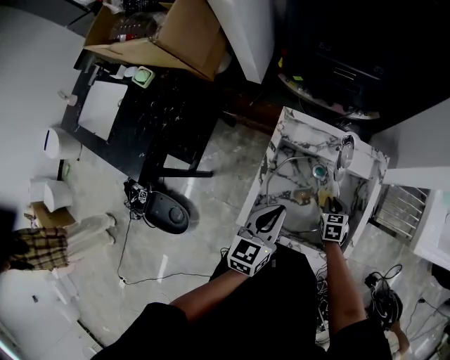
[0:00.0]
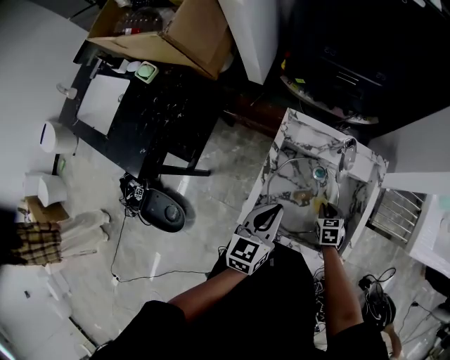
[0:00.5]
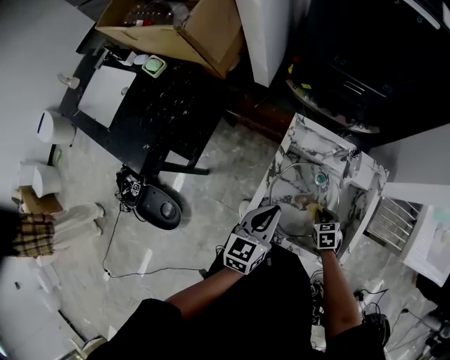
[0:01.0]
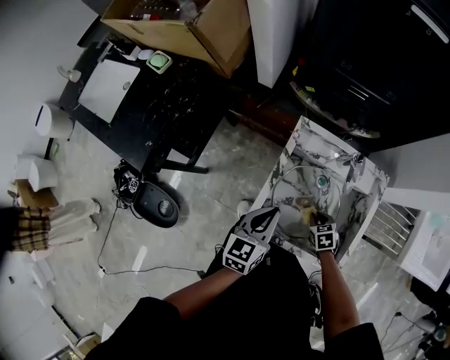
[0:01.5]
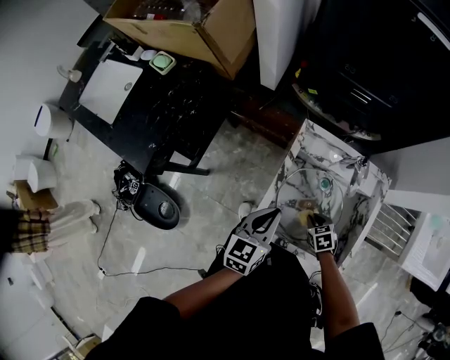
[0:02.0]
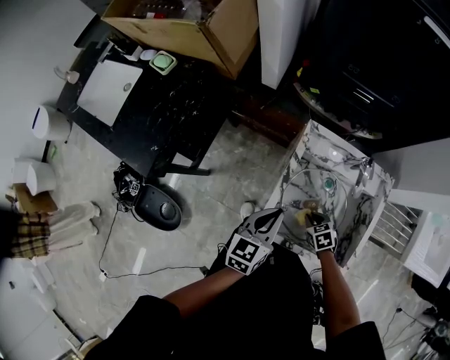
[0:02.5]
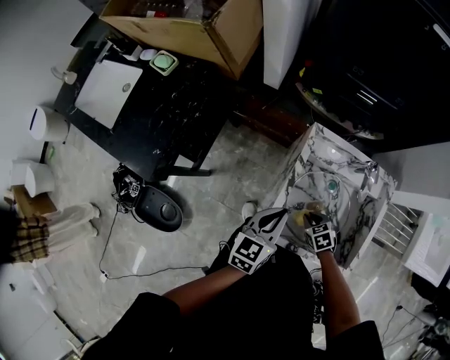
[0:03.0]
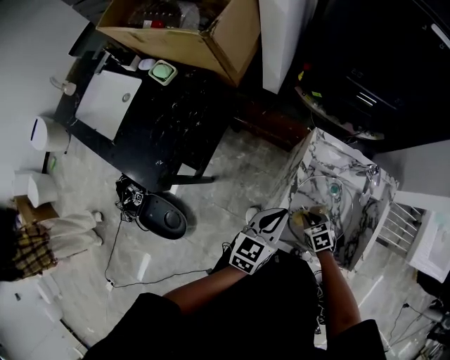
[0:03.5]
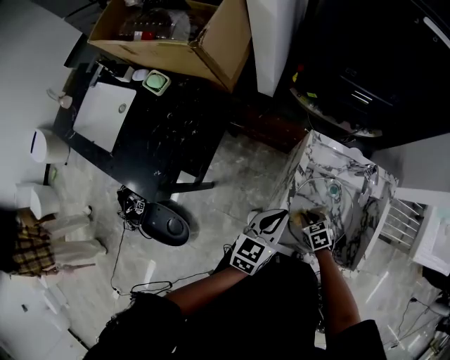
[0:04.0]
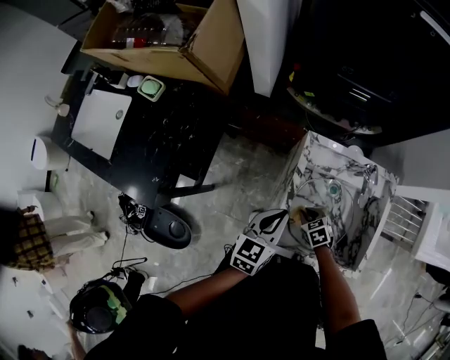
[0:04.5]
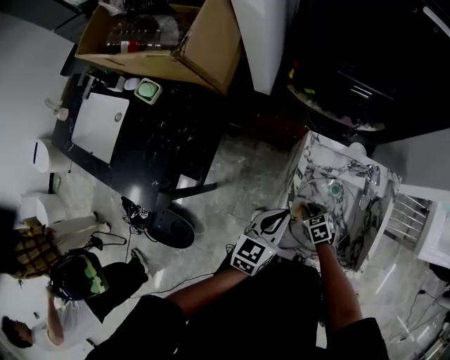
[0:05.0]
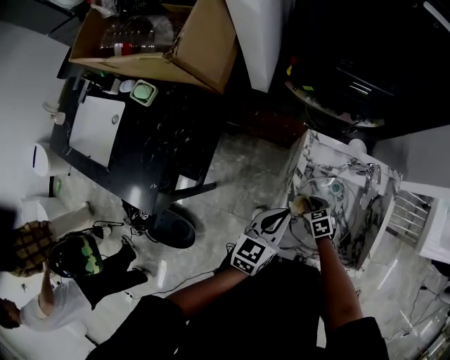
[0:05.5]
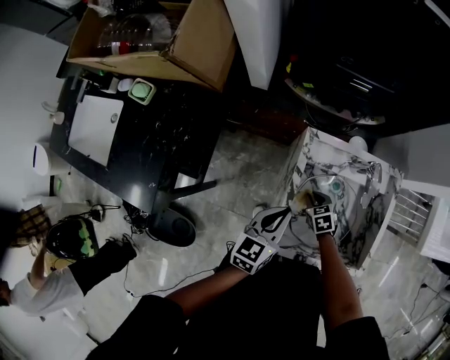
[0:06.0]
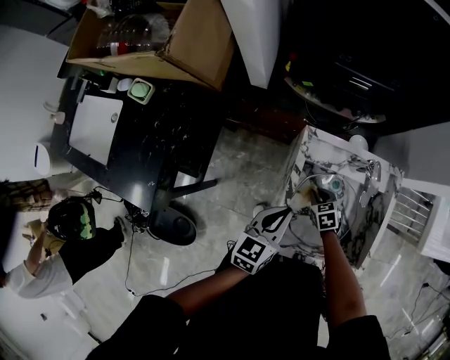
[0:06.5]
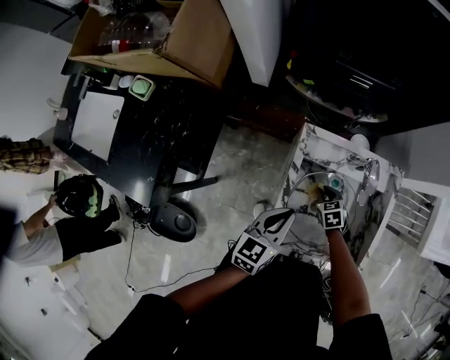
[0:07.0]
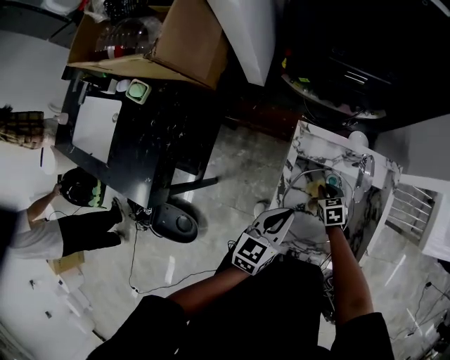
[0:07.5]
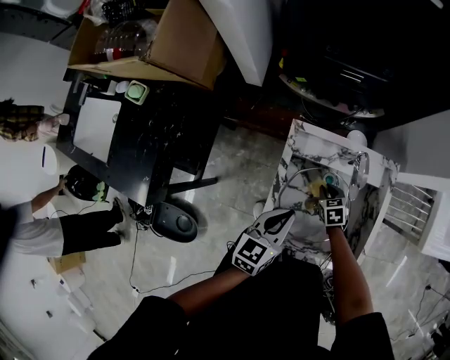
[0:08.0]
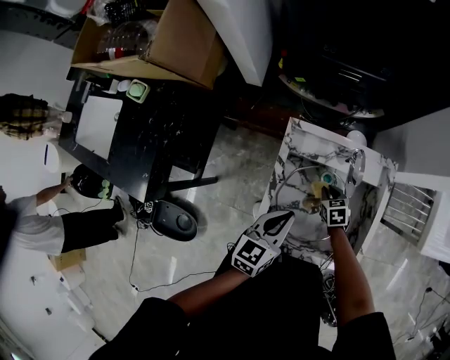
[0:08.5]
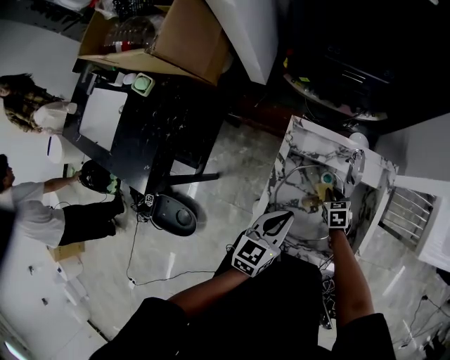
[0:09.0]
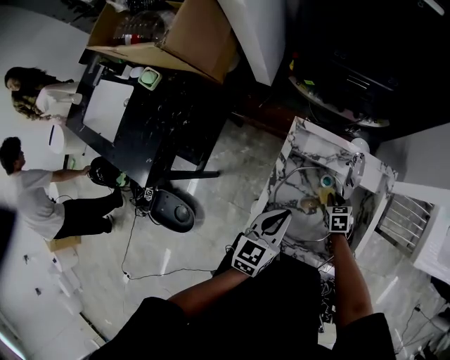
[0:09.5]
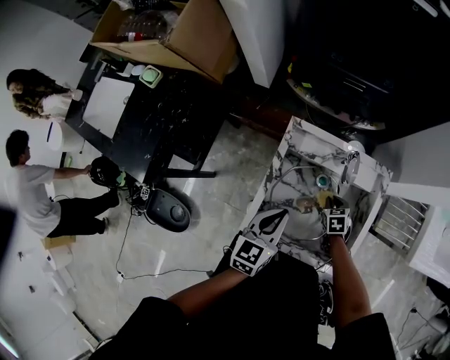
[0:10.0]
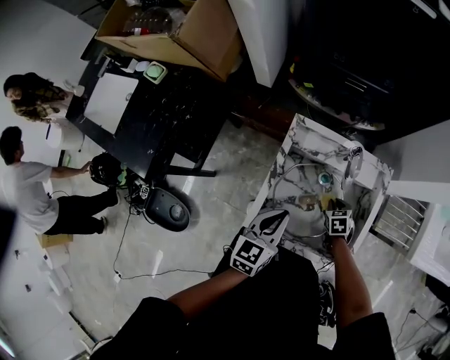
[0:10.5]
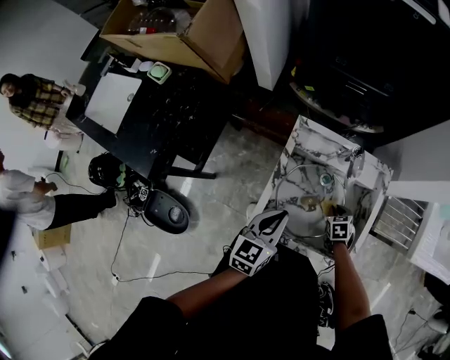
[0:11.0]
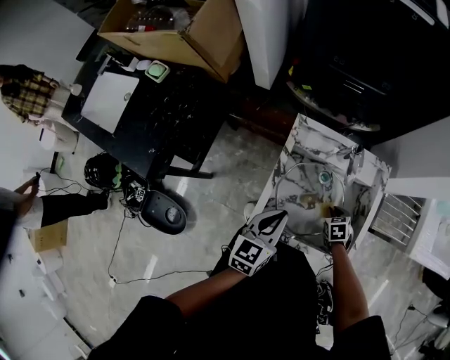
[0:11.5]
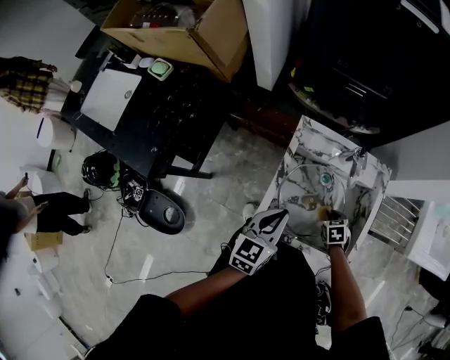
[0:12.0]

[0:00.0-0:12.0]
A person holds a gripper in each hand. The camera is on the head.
0.0 to 2.0 s: The grippers both shift to the left by about 10 cm. The right gripper turns by some 20 degrees.
2.0 to 4.0 s: The right gripper shifts approximately 10 cm to the left, while the left gripper shifts by about 5 cm.
4.0 to 6.0 s: The right gripper shifts roughly 10 cm forward.
6.0 to 8.0 s: Both grippers move to the right, some 10 cm.
8.0 to 10.0 s: The right gripper moves to the right, roughly 5 cm.
10.0 to 12.0 s: The right gripper shifts about 10 cm backward, while the left gripper shifts by some 5 cm.

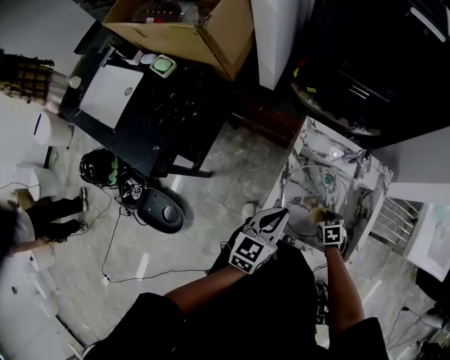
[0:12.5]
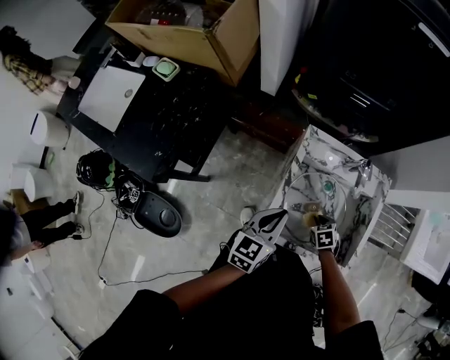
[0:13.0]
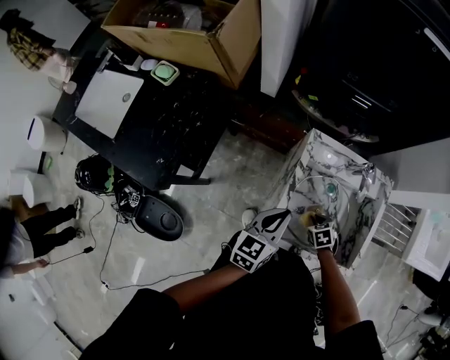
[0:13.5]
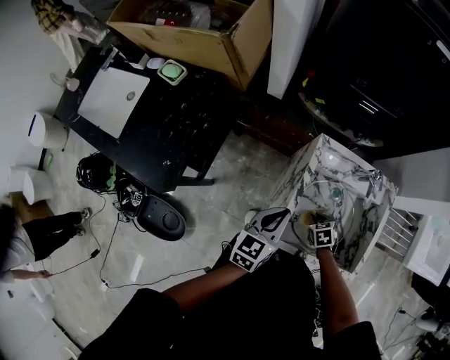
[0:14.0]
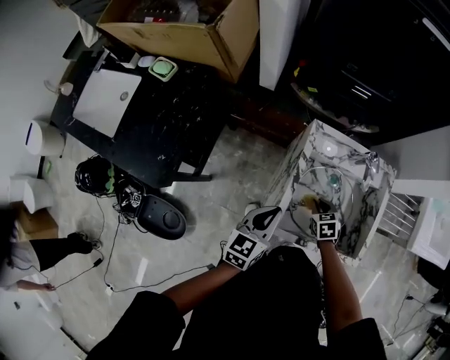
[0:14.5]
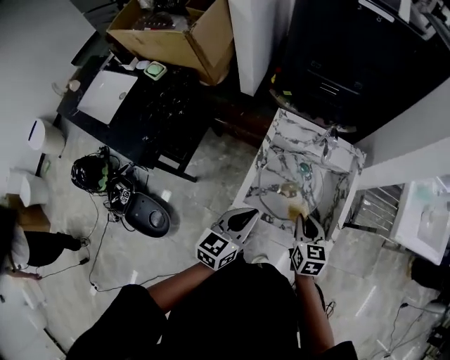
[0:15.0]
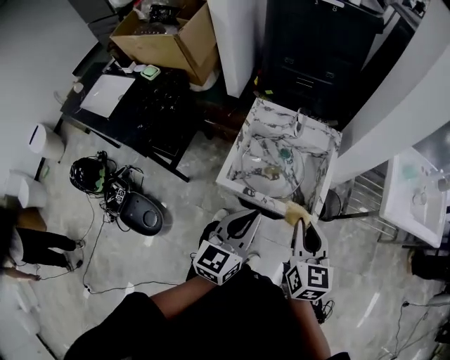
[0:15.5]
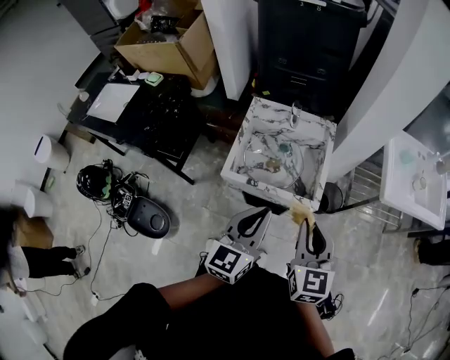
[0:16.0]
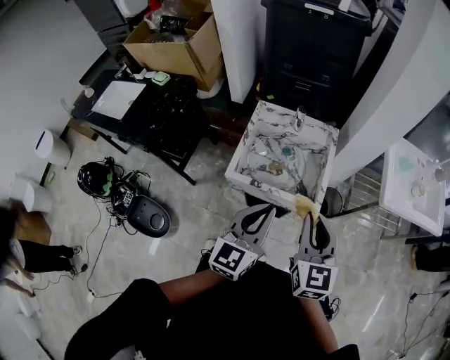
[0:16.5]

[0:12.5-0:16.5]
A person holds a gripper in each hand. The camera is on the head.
12.5 to 14.5 s: Both grippers travel together to the left, about 10 cm.
14.5 to 16.5 s: The left gripper is displaced to the right, backward and upward by approximately 40 cm, and turns by approximately 20 degrees. The right gripper travels upward, backward and to the right by approximately 50 cm, and points its fingers about 50 degrees further upward.

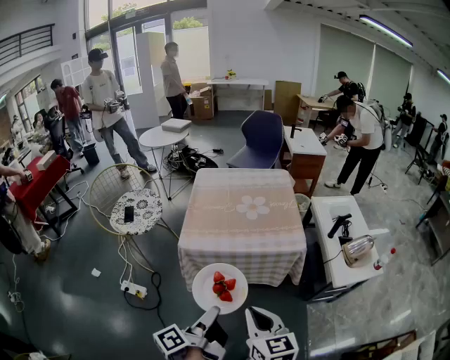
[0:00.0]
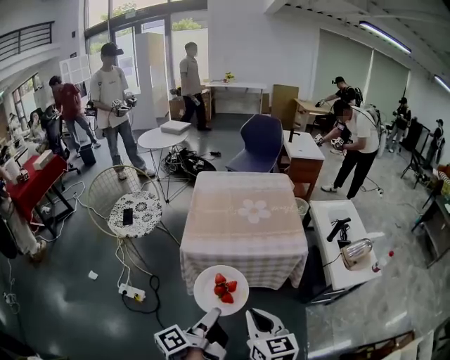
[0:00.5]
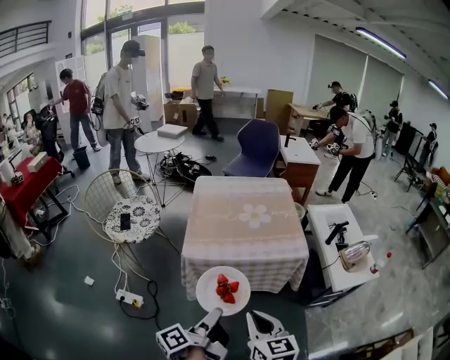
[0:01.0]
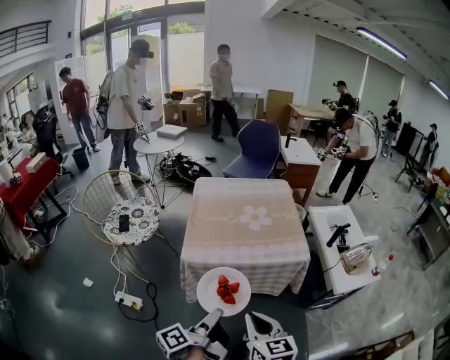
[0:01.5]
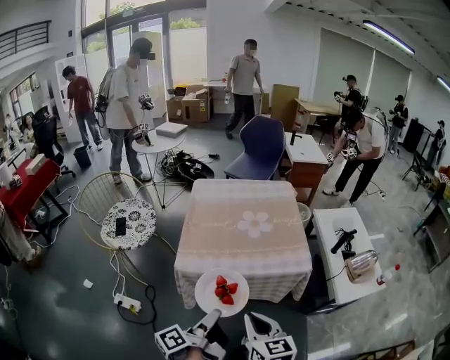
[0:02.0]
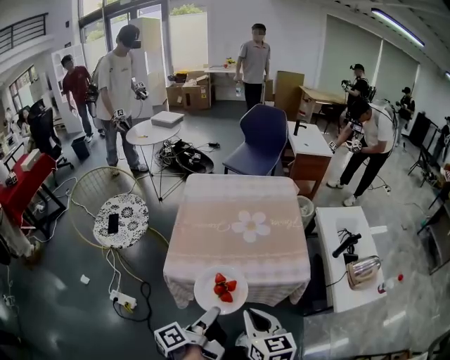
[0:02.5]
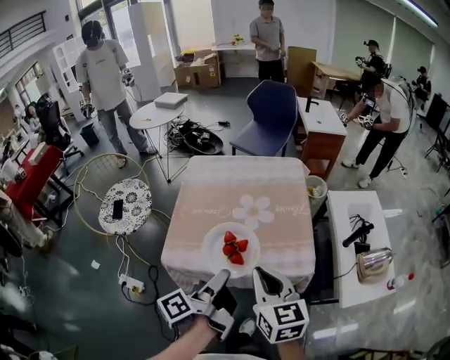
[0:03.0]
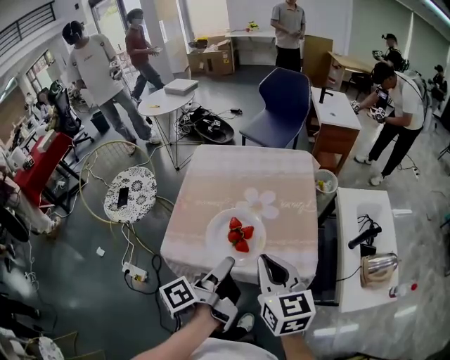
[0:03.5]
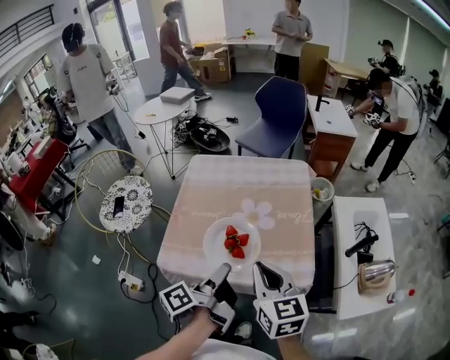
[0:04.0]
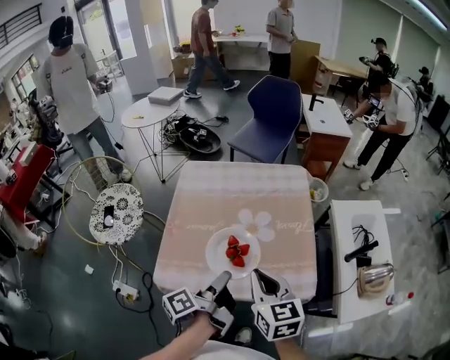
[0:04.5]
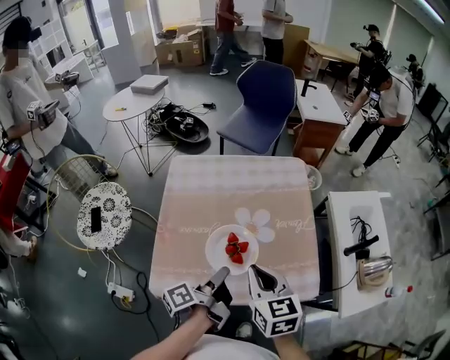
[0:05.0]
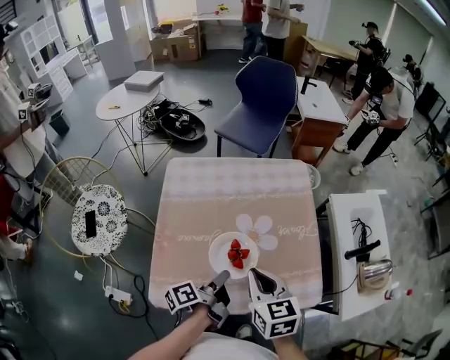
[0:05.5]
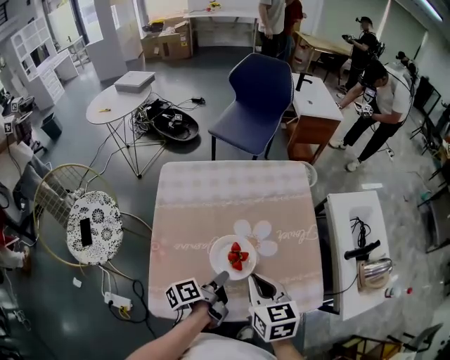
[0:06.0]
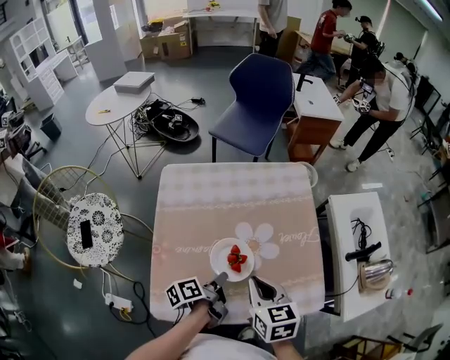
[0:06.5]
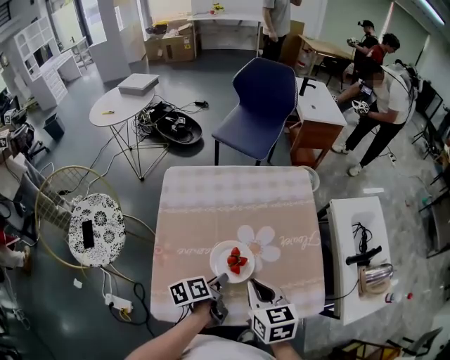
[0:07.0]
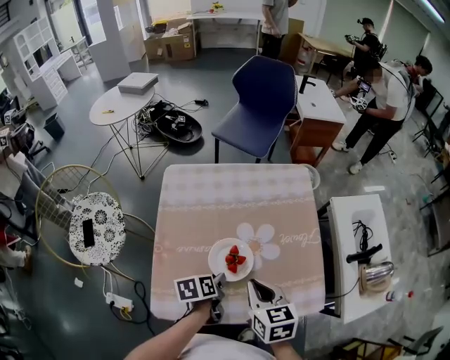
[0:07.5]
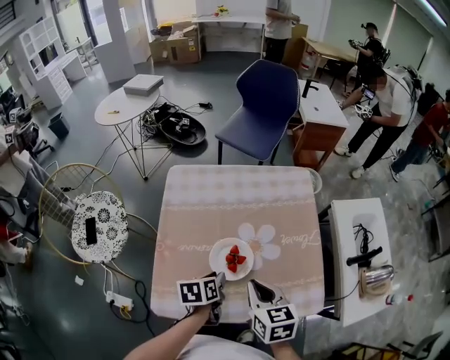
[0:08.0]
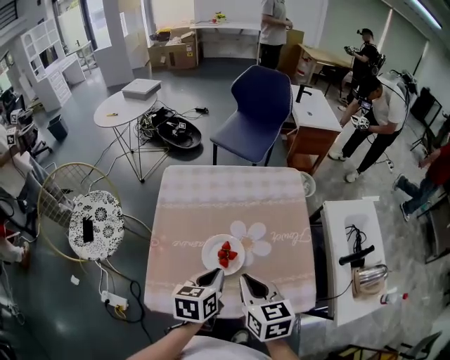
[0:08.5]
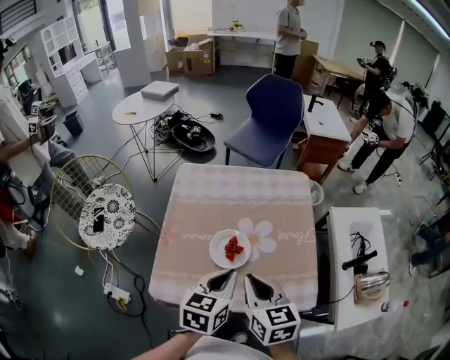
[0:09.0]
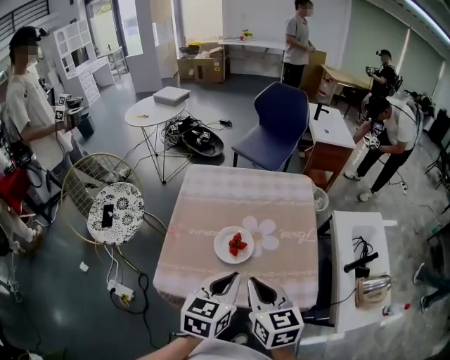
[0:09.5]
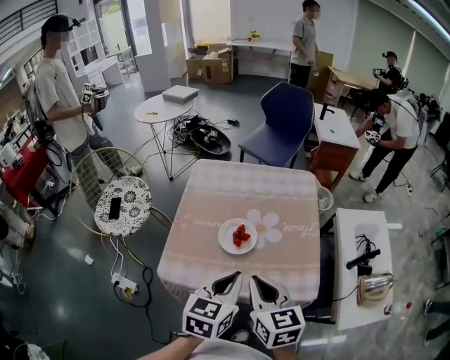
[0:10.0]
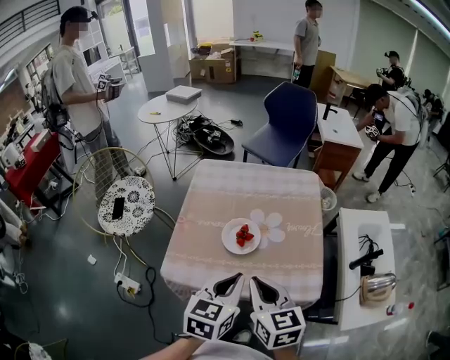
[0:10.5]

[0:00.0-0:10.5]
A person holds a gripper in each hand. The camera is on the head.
0.0 to 2.0 s: The right gripper moves approximately 10 cm.
2.0 to 4.0 s: The right gripper shifts by approximately 25 cm.
4.0 to 6.5 s: The right gripper changes place by roughly 20 cm, and rotates about 20 degrees.
8.5 to 10.5 s: The right gripper moves roughly 15 cm.

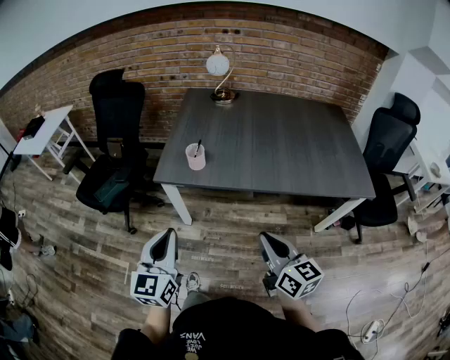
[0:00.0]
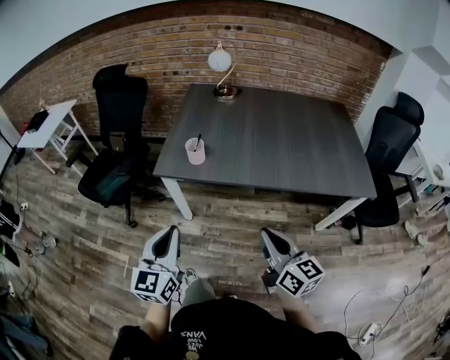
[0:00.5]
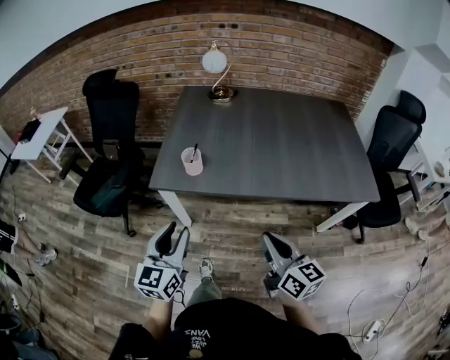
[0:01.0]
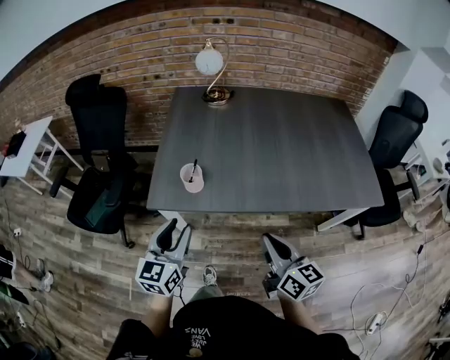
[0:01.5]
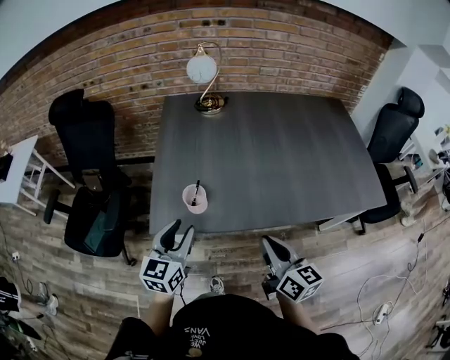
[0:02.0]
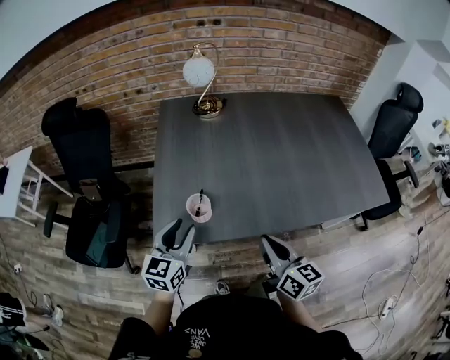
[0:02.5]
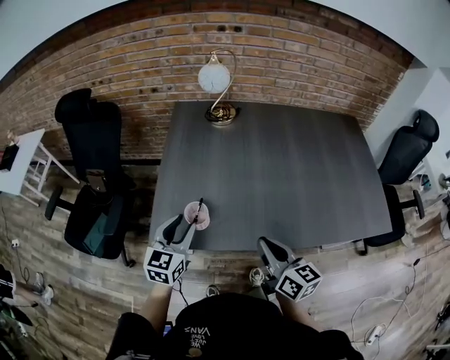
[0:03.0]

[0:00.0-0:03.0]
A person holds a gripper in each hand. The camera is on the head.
0.0 to 1.5 s: The grippers both shift forward by approximately 15 cm. The left gripper opens.
1.5 to 3.0 s: The grippers both shift forward by approximately 15 cm.
